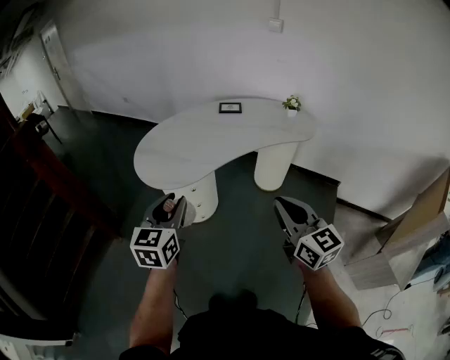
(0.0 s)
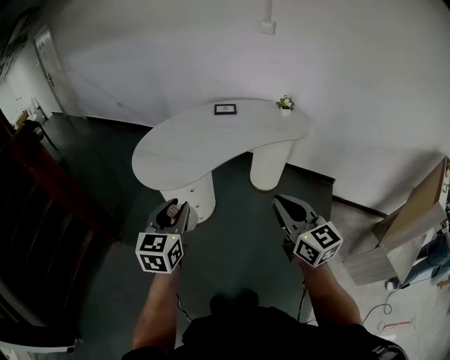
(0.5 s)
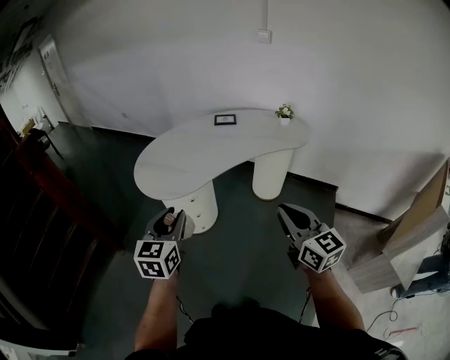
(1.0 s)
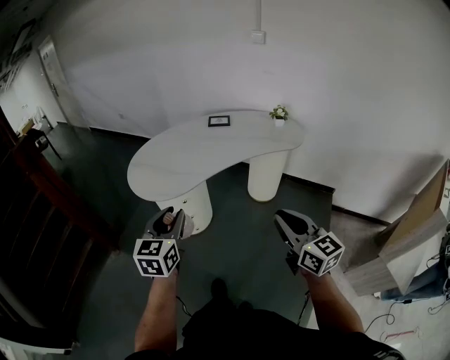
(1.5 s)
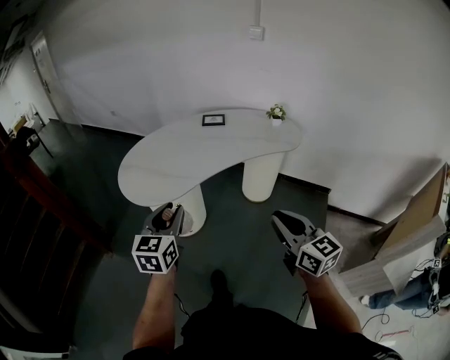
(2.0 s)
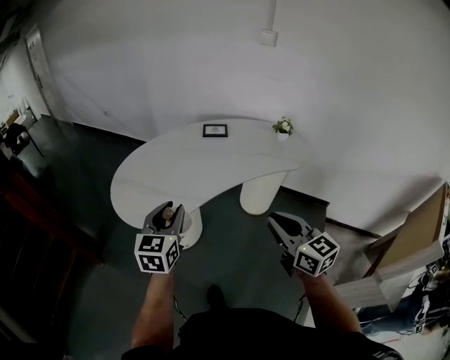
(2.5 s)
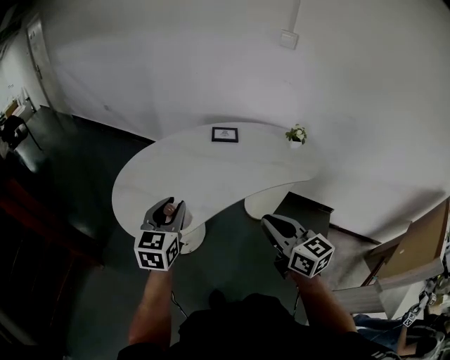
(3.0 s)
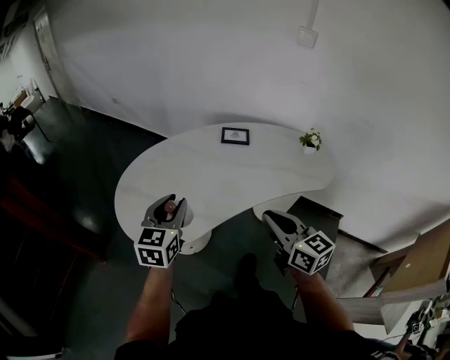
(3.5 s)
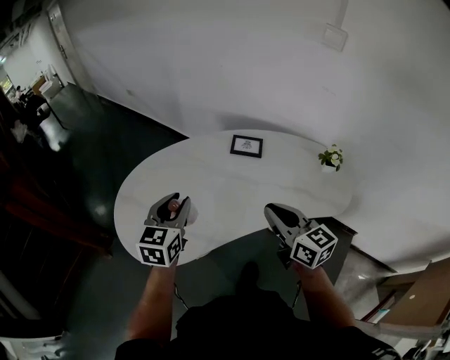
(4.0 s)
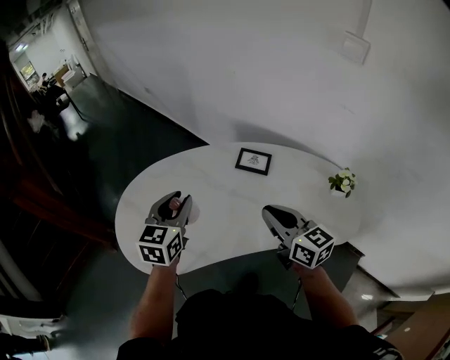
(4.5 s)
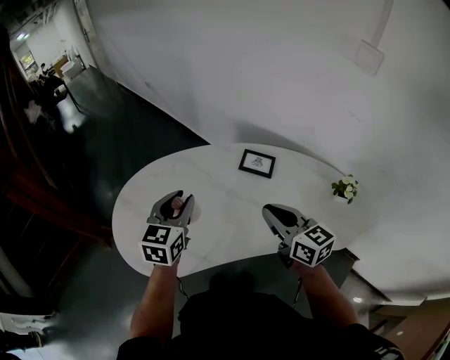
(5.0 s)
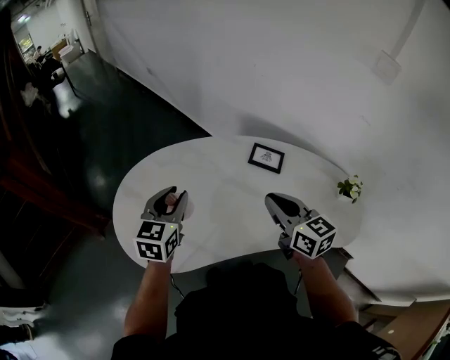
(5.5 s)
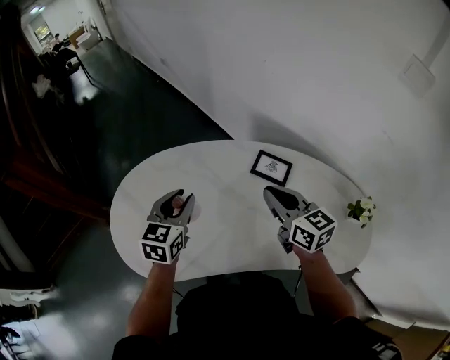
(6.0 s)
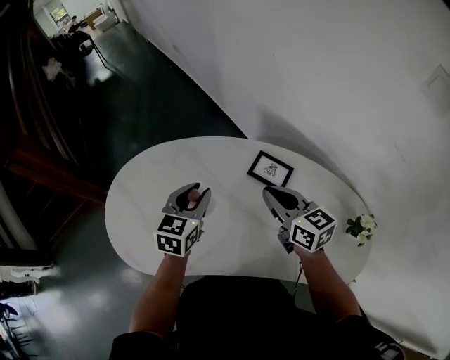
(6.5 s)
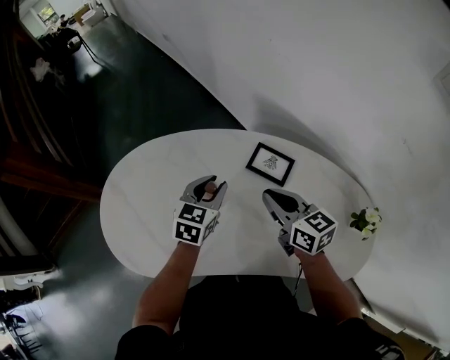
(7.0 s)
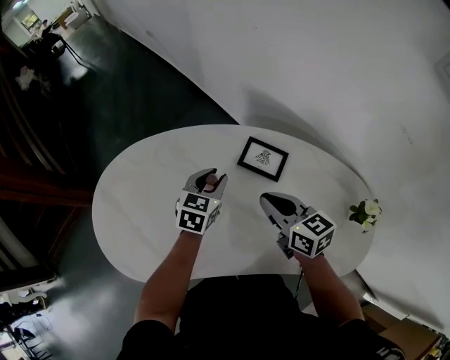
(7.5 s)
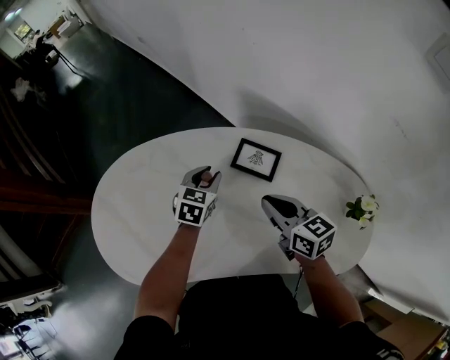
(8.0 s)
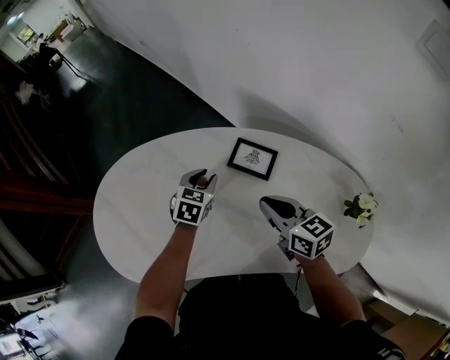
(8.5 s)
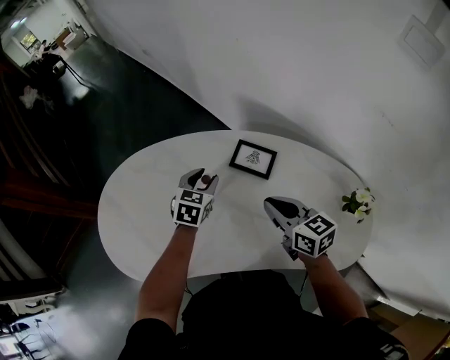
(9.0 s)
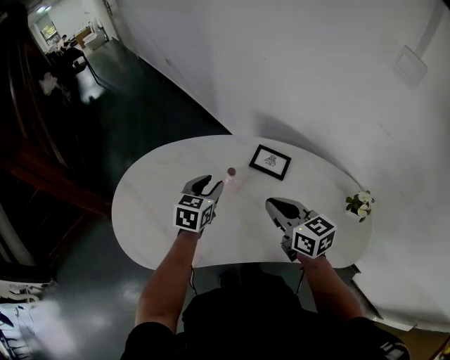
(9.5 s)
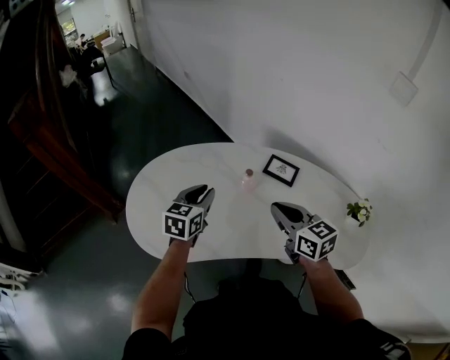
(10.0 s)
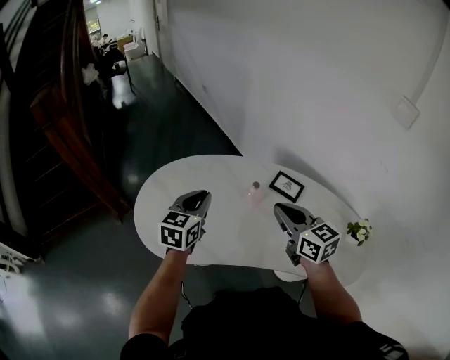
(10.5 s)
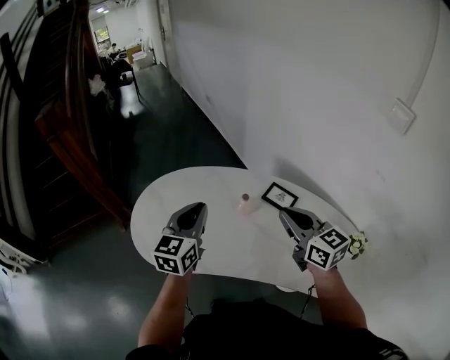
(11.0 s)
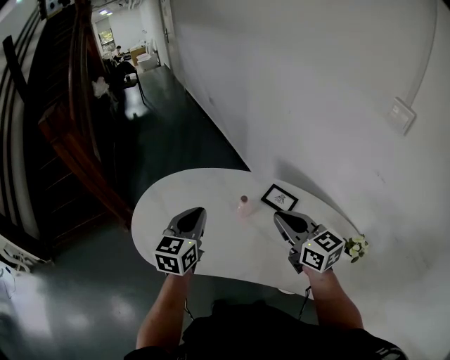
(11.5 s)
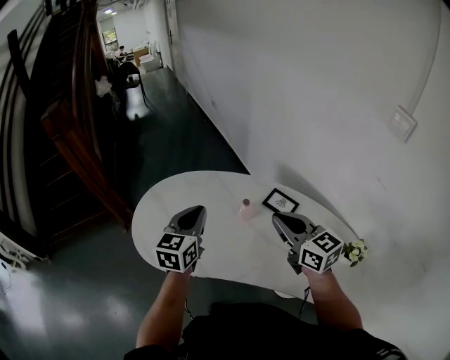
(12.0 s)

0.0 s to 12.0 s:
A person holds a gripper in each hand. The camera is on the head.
0.0 to 2.0 s: The grippers both shift to the right by some 5 cm.
2.0 to 4.0 s: The pair of grippers is taken forward, approximately 40 cm.
4.0 to 6.0 s: The right gripper moves forward, about 25 cm. The left gripper shifts approximately 15 cm forward and downward.
6.0 to 8.0 s: The left gripper travels to the right, downward and forward by about 25 cm; the right gripper goes some 10 cm downward and to the right.
8.0 to 10.0 s: The right gripper moves backward, to the left and upward, about 20 cm. The left gripper is displaced to the left, backward and upward by roughly 25 cm.
10.0 to 12.0 s: Both grippers move upward, approximately 10 cm.

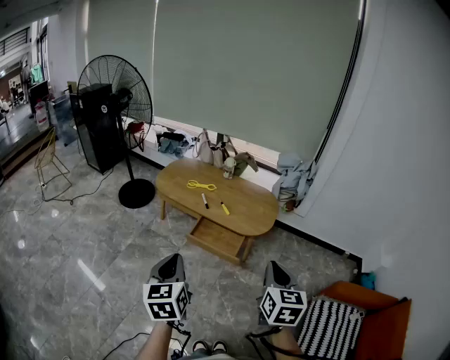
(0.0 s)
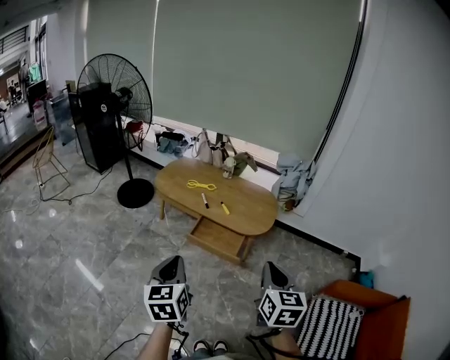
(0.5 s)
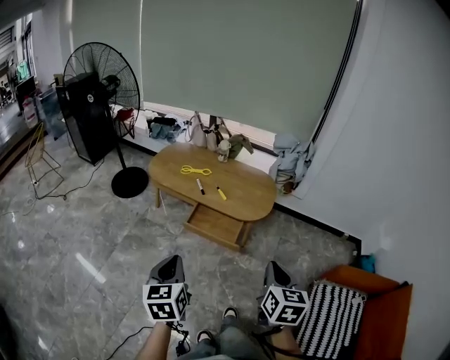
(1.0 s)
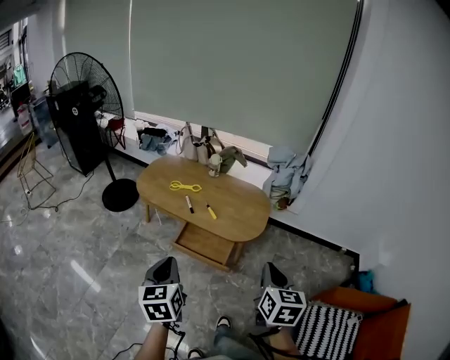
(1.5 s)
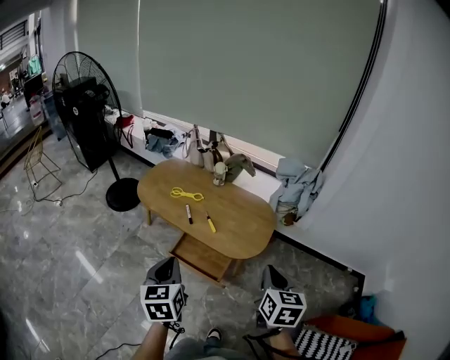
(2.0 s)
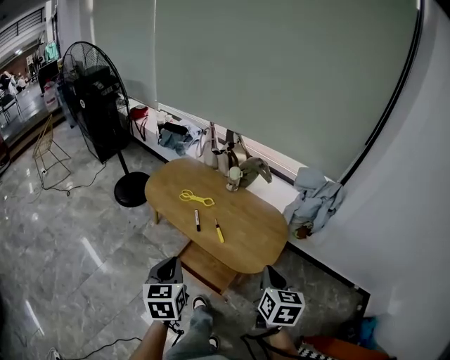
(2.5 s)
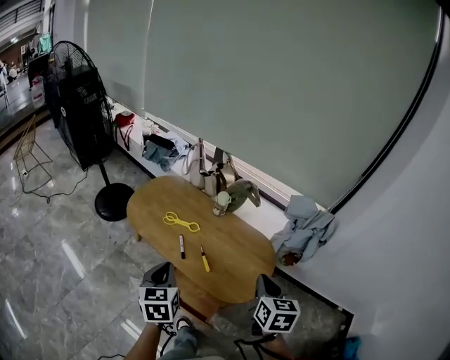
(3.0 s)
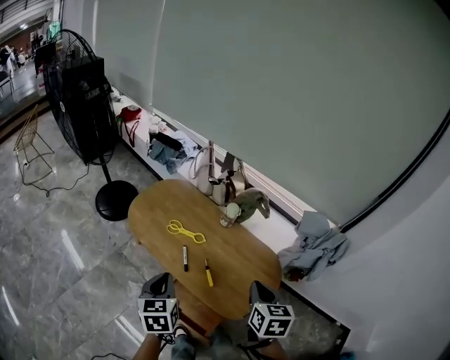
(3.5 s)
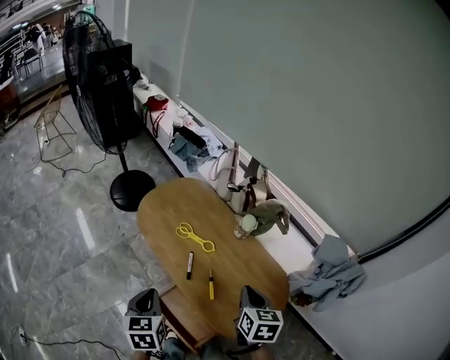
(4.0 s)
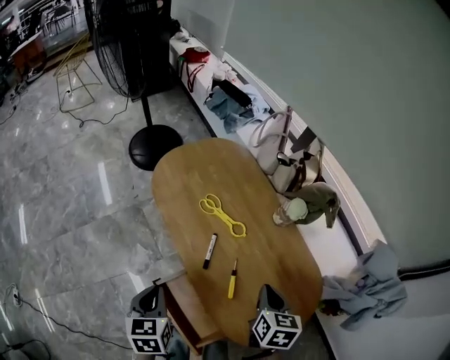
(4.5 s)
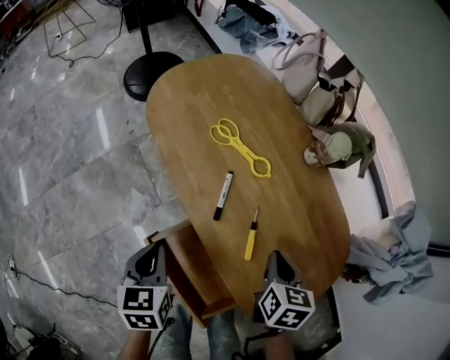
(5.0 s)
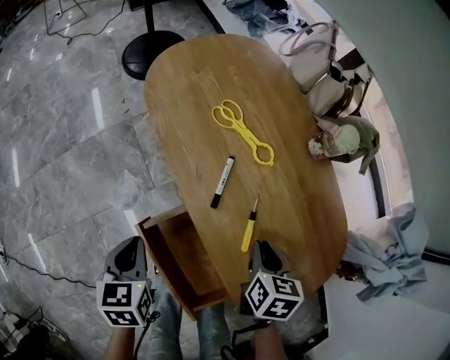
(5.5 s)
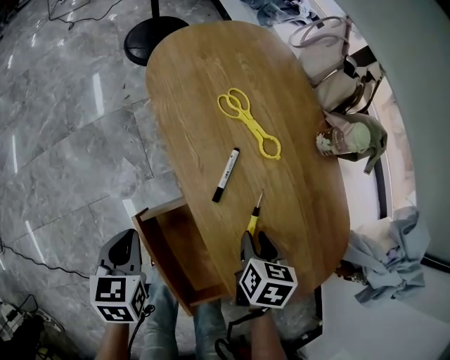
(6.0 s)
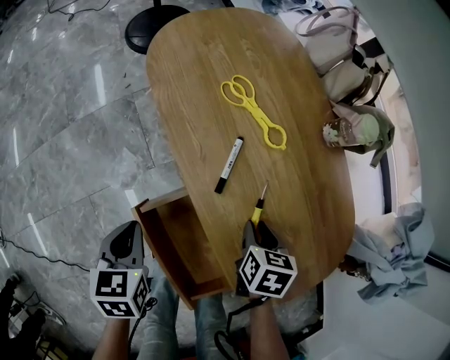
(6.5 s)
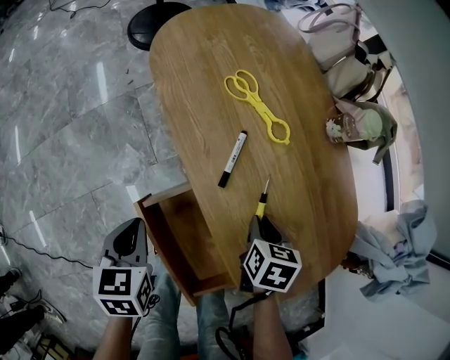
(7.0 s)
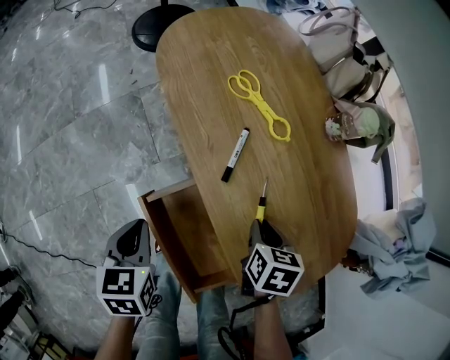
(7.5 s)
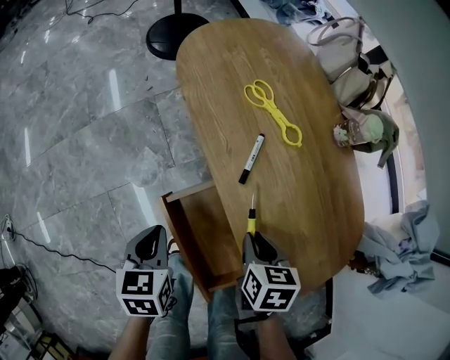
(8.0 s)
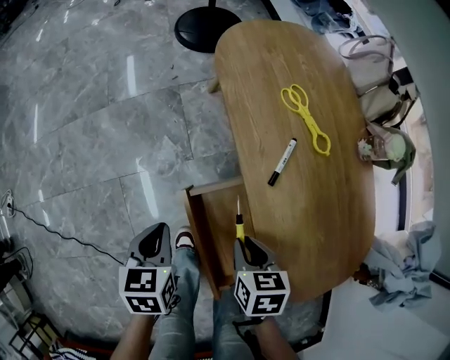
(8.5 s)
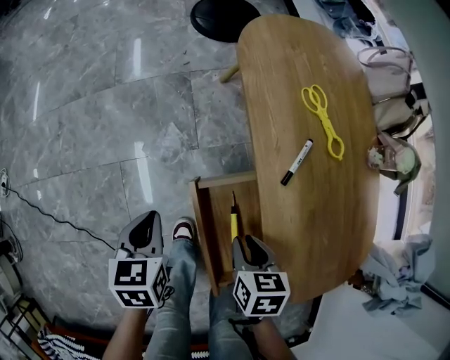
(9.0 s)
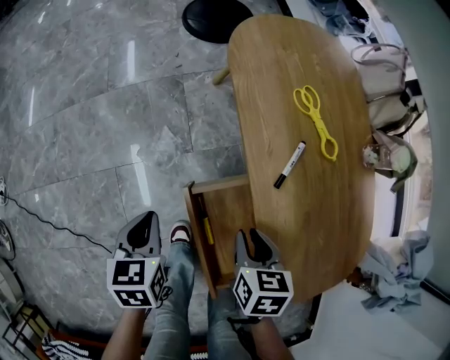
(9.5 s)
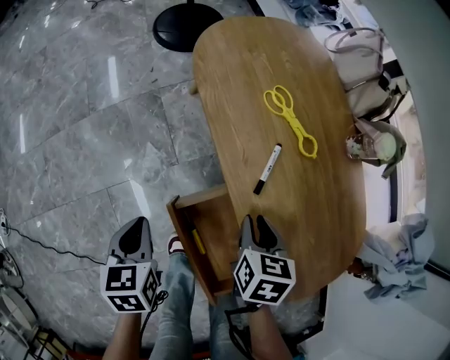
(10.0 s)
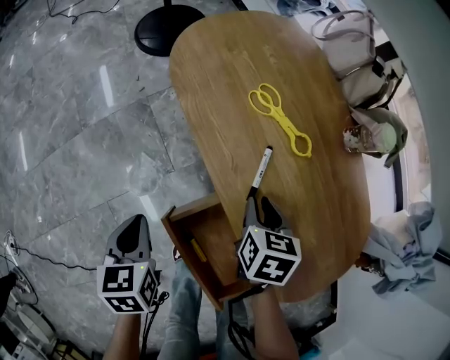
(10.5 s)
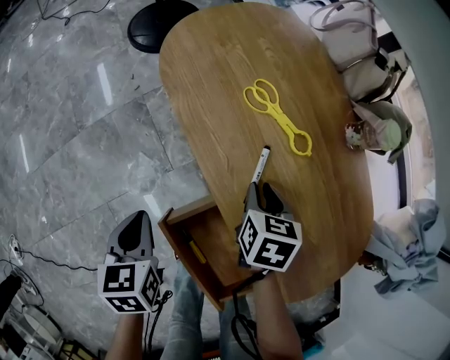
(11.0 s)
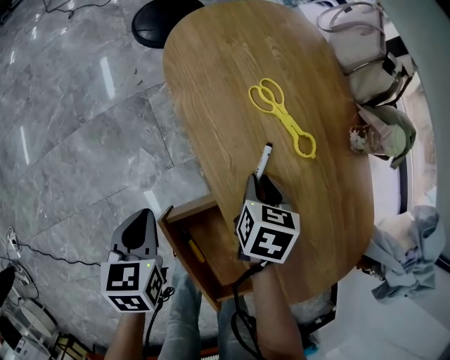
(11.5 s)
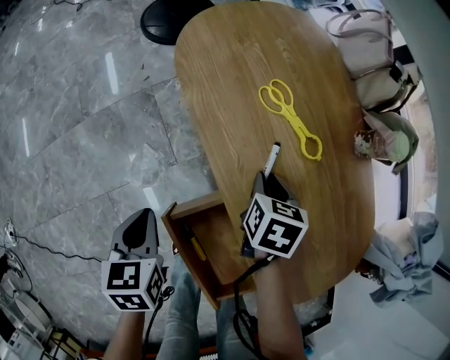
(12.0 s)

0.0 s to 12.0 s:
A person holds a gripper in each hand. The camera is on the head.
0.0 to 2.0 s: The right gripper travels forward and to the right by roughly 25 cm; the left gripper moves forward, about 25 cm.
2.0 to 4.0 s: The two grippers go approximately 35 cm forward. The right gripper changes its angle by approximately 30 degrees; the left gripper changes its angle by roughly 20 degrees.
4.0 to 6.0 s: The grippers both shift downward by roughly 30 cm. The right gripper rotates about 20 degrees, and opens up.
6.0 to 8.0 s: The right gripper is displaced to the left and backward by approximately 10 cm.
8.0 to 10.0 s: The left gripper is displaced to the left by roughly 5 cm; the right gripper travels forward by some 10 cm, and goes to the left and returns, approximately 10 cm each way.
10.0 to 12.0 s: The left gripper heads forward, covering some 5 cm. The right gripper moves forward and downward, roughly 15 cm.

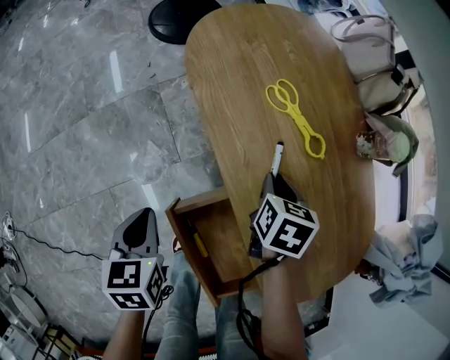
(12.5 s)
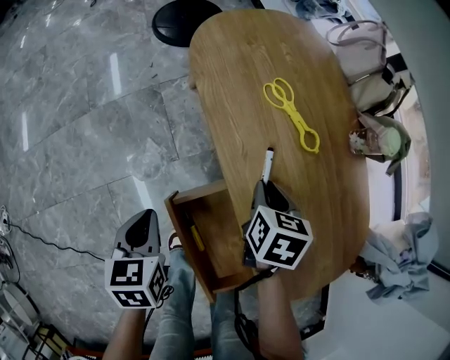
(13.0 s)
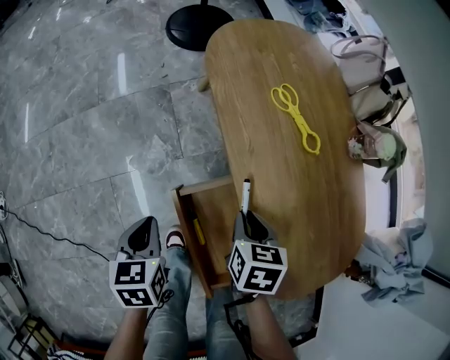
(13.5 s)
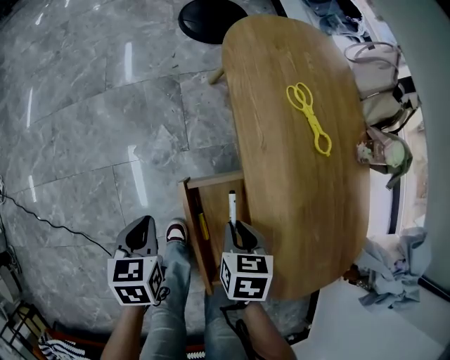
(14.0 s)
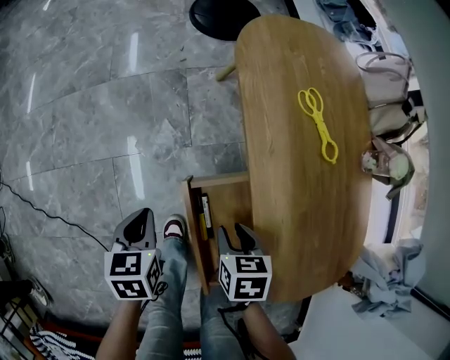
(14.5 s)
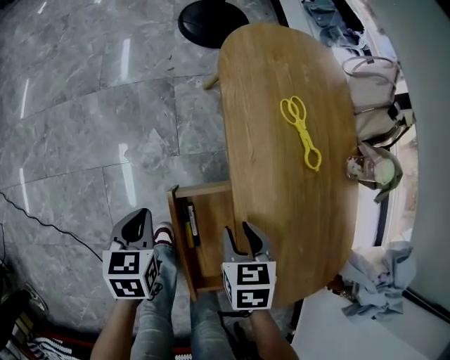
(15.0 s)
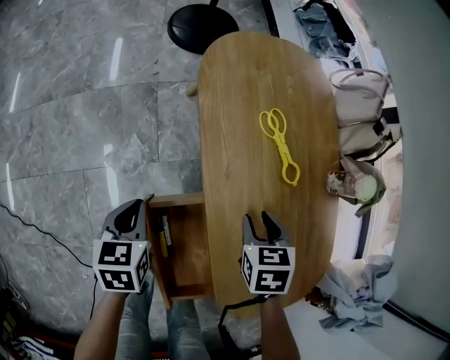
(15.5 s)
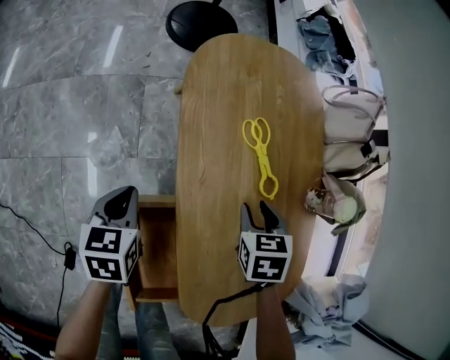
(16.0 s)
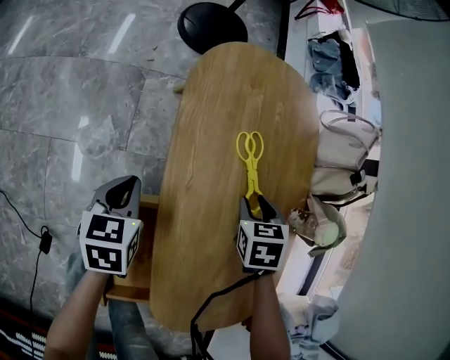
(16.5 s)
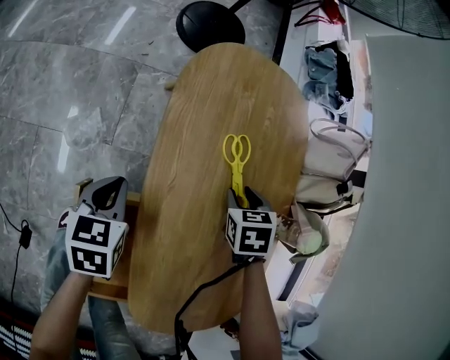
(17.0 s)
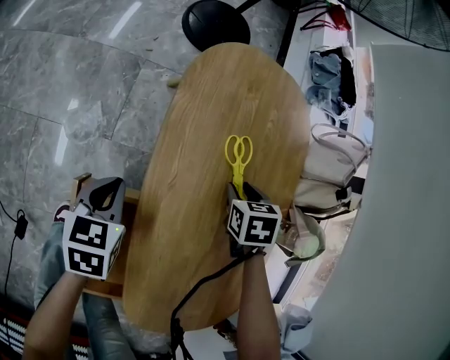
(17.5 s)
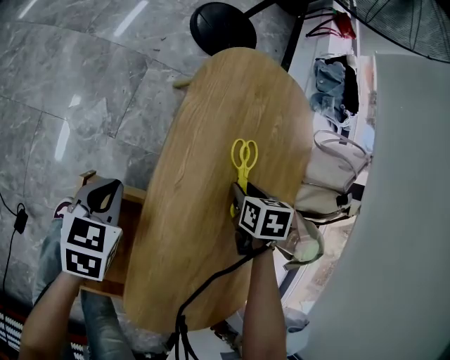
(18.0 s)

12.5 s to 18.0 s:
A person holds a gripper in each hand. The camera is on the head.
12.5 to 14.5 s: The left gripper moves some 10 cm. The right gripper shifts by about 20 cm, and rotates about 30 degrees.
14.5 to 16.0 s: The right gripper is displaced to the right and forward by some 25 cm, and changes its angle by about 30 degrees; the left gripper is displaced forward and to the right by about 20 cm.
16.0 to 18.0 s: The right gripper moves forward and downward, approximately 15 cm.
